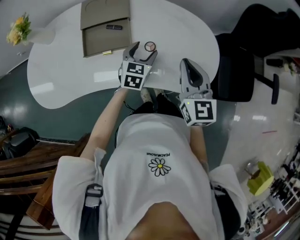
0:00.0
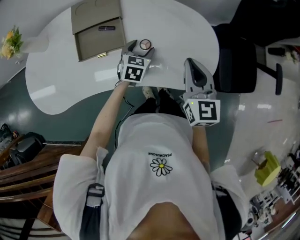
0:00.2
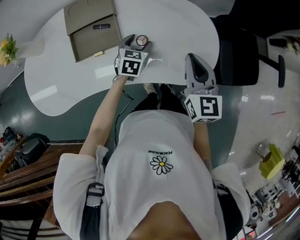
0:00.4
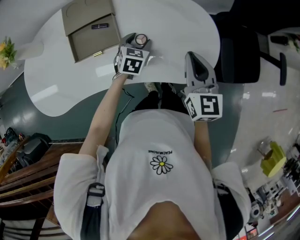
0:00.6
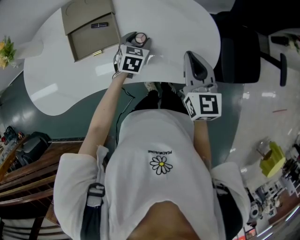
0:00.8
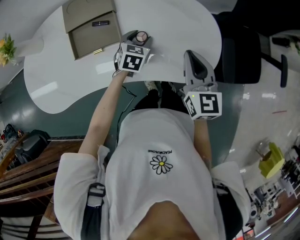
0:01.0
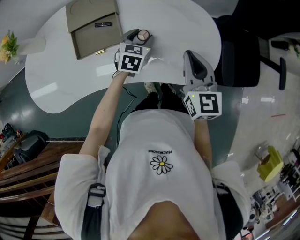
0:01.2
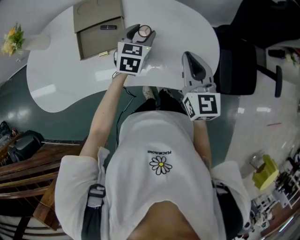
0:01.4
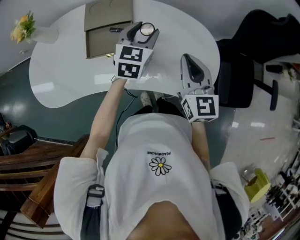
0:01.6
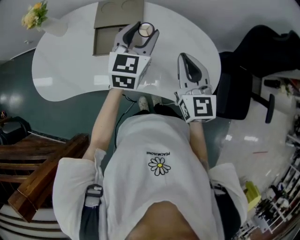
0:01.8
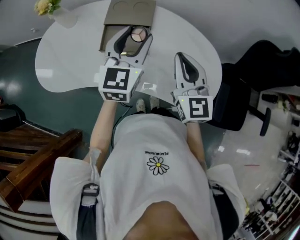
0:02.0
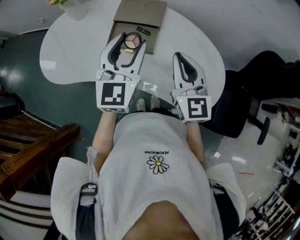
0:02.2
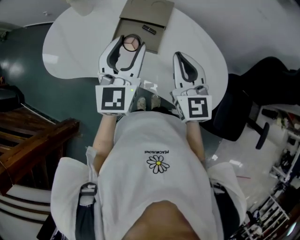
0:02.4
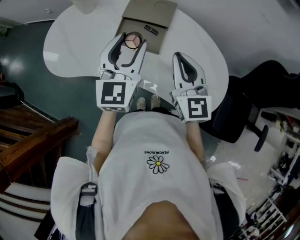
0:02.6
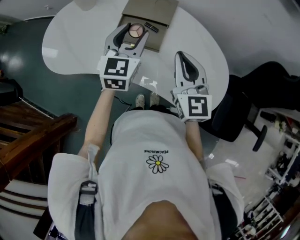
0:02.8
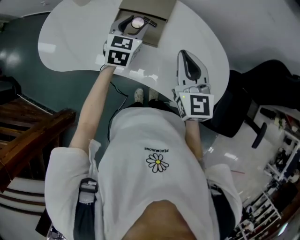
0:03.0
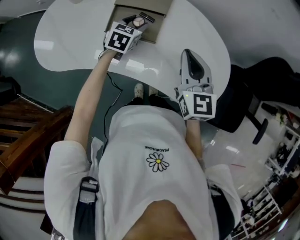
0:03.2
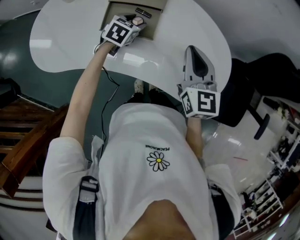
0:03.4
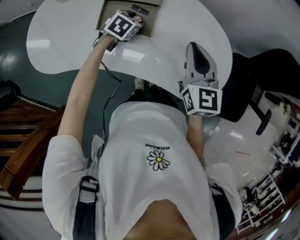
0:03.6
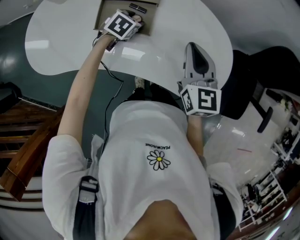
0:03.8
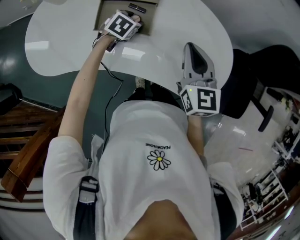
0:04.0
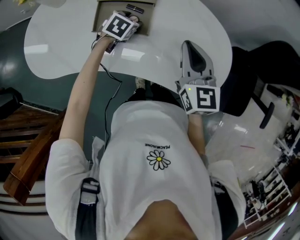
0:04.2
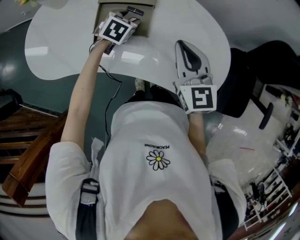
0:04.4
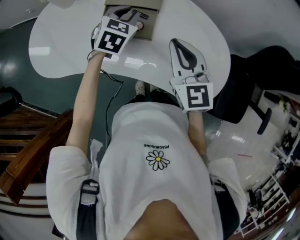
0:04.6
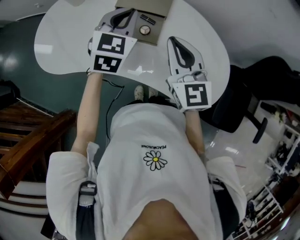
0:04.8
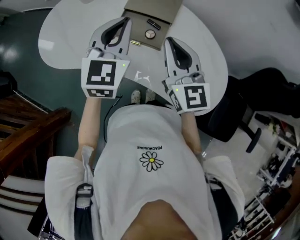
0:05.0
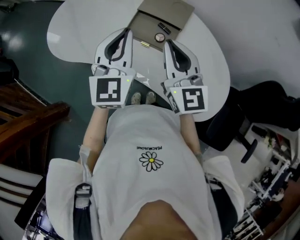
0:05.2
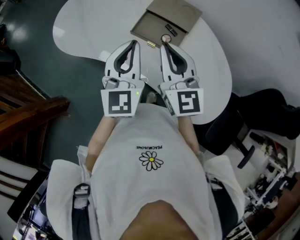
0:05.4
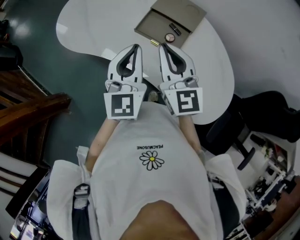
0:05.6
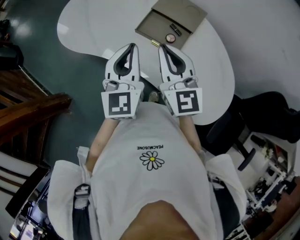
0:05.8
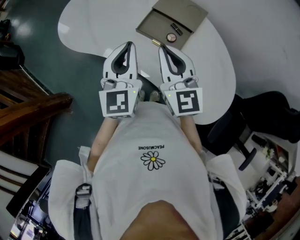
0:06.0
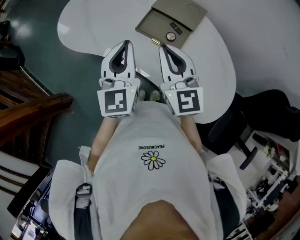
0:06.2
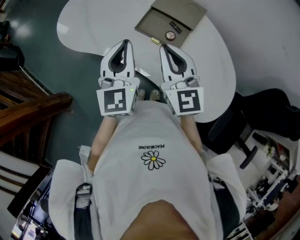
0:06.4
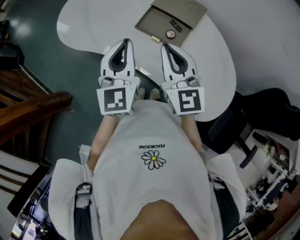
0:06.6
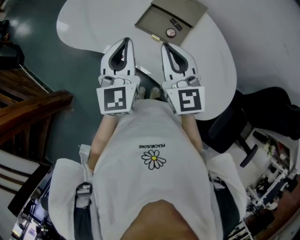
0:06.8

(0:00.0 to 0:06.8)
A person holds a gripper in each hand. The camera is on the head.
0:00.0 - 0:01.4: The left gripper travels forward by approximately 5 cm.
0:01.4 - 0:02.8: The right gripper changes place by some 15 cm, and rotates some 30 degrees. Meanwhile the left gripper ends up roughly 25 cm from where it was, and swivels about 30 degrees.
0:02.8 - 0:04.0: The right gripper travels downward and to the right by approximately 10 cm. Meanwhile the left gripper heads downward, covering about 25 cm, and angles its fingers downward, by about 50 degrees.
0:04.0 - 0:05.4: The left gripper goes approximately 30 cm upward, tilts its fingers some 60 degrees upward, and closes up. The right gripper changes place by roughly 20 cm, and changes its angle by some 30 degrees.
0:05.4 - 0:06.8: The grippers stay close to where they were, moving slightly.

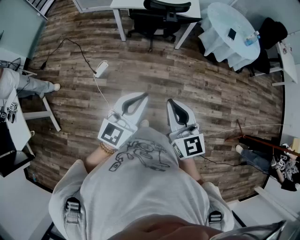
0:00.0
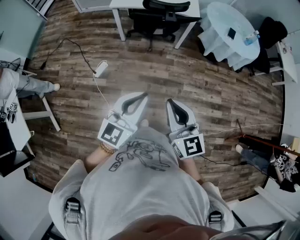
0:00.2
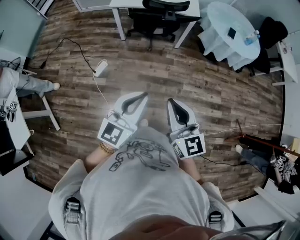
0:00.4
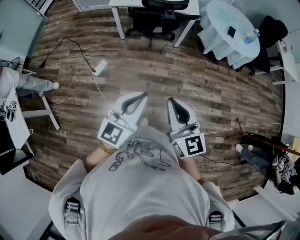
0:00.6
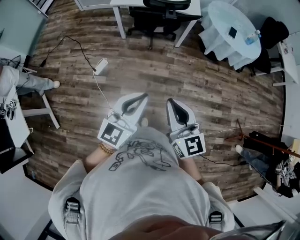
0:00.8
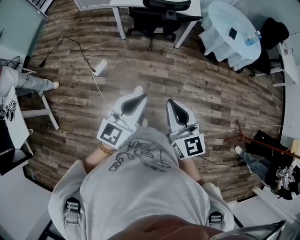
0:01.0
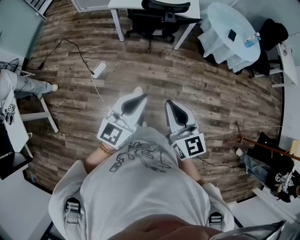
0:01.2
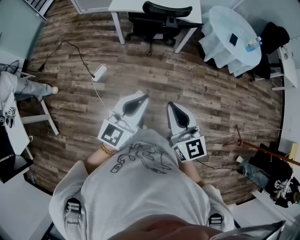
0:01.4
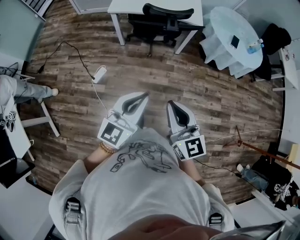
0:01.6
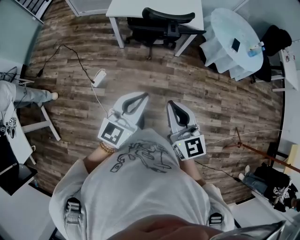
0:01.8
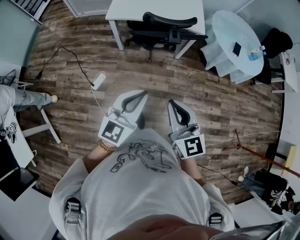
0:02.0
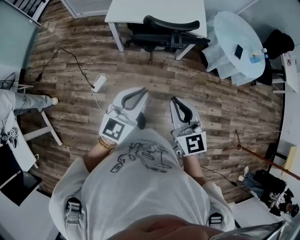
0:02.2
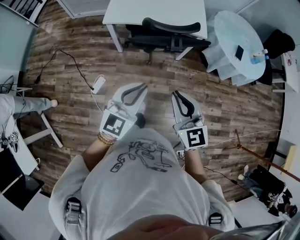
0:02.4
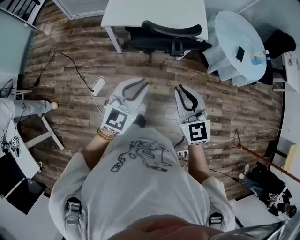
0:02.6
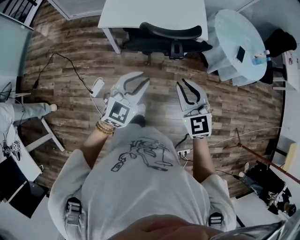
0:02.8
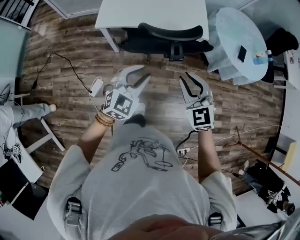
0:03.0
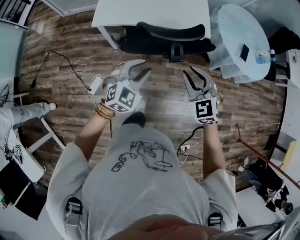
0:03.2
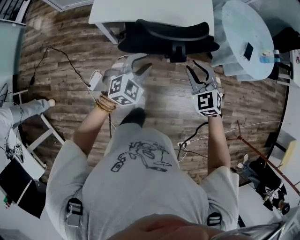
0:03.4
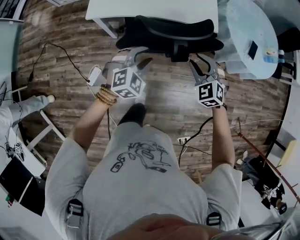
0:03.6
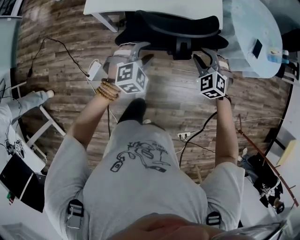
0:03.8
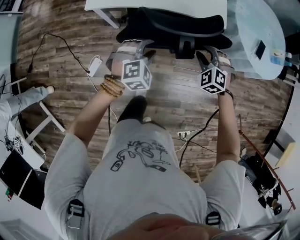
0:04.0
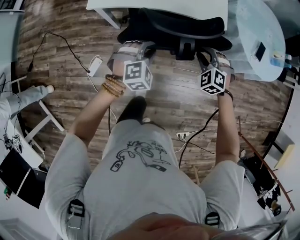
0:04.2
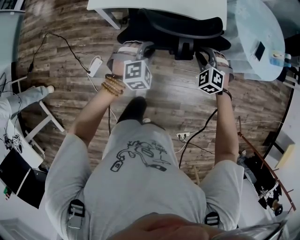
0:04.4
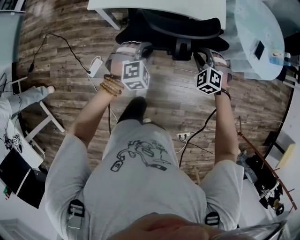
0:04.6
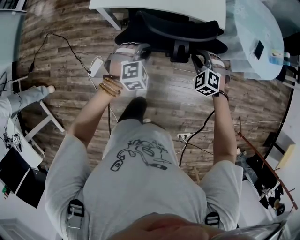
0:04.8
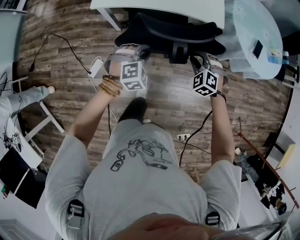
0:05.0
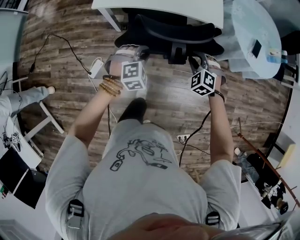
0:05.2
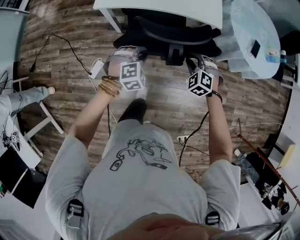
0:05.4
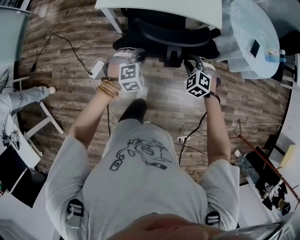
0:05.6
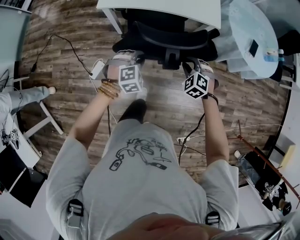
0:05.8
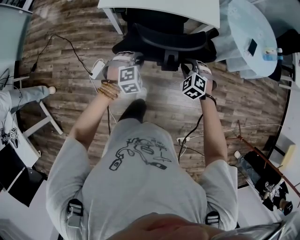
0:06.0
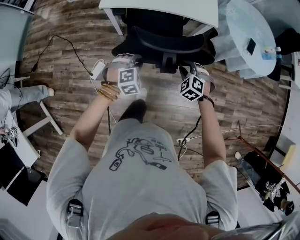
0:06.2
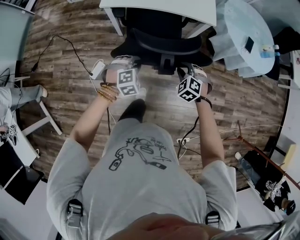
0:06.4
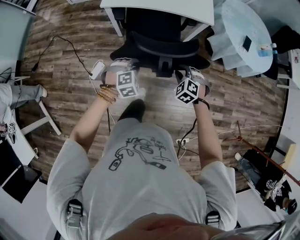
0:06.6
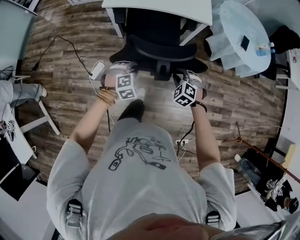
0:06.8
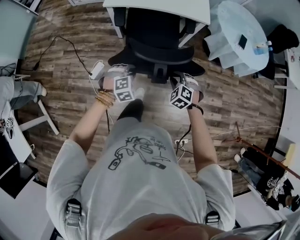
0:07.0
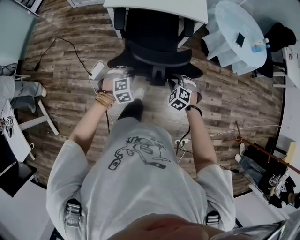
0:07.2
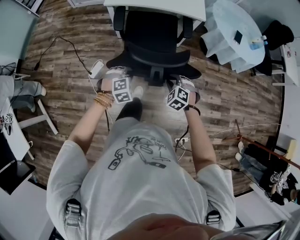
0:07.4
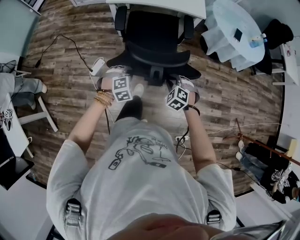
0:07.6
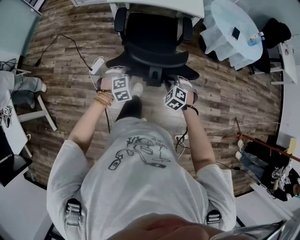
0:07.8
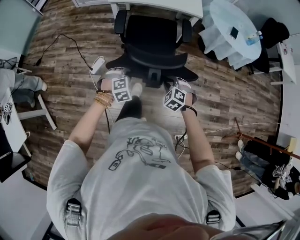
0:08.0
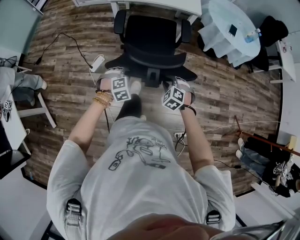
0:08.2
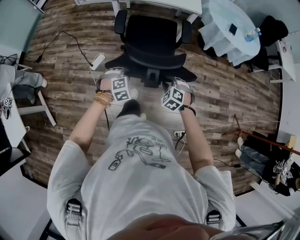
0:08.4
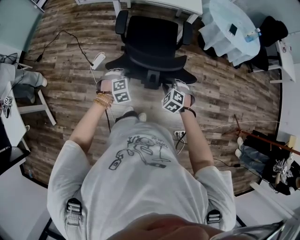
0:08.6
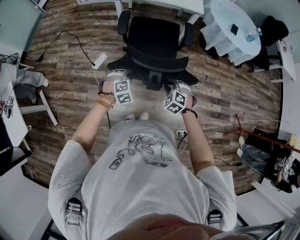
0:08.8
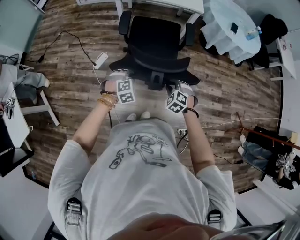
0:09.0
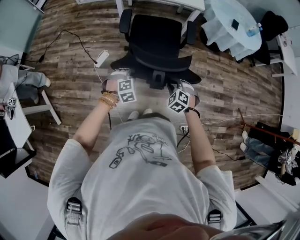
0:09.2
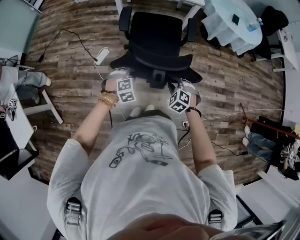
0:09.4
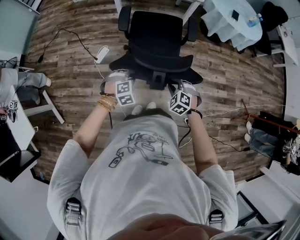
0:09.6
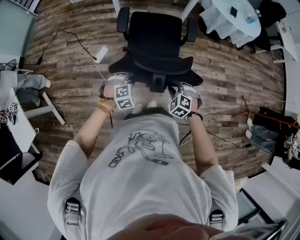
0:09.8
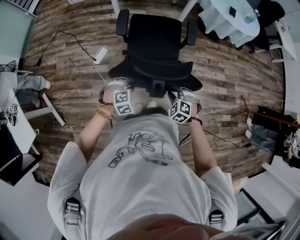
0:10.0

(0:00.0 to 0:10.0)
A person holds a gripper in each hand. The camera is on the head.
0:00.0 - 0:01.4: Both grippers move forward, approximately 5 cm.
0:01.4 - 0:02.8: The two grippers travel together, forward, approximately 40 cm. The left gripper changes its angle by about 30 degrees, and opens up. Meanwhile the right gripper rotates some 30 degrees.
0:02.8 - 0:04.2: The grippers both shift downward and forward by some 35 cm. The left gripper tips its fingers downward by some 30 degrees, and opens, then closes again, while the right gripper points its fingers about 30 degrees further downward.
0:04.2 - 0:05.8: The grippers both shift backward by about 15 cm.
0:05.8 - 0:07.2: Both grippers move backward, about 25 cm.
0:07.2 - 0:08.6: The grippers both shift backward by approximately 25 cm.
0:08.6 - 0:10.0: Both grippers travel together backward, some 15 cm.

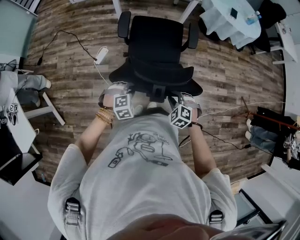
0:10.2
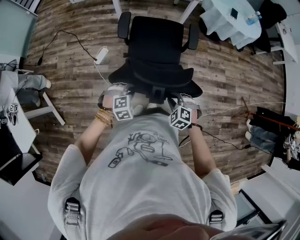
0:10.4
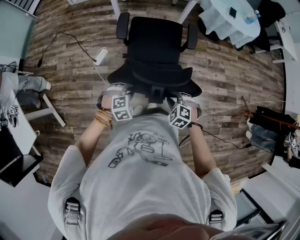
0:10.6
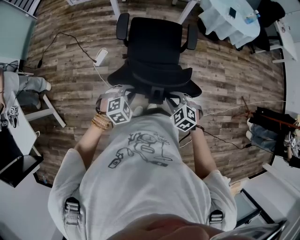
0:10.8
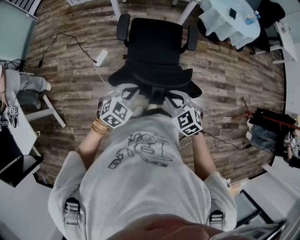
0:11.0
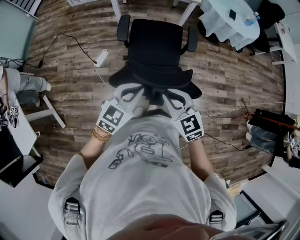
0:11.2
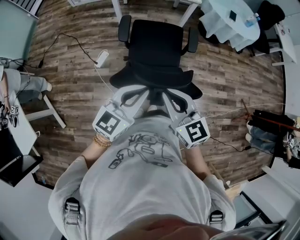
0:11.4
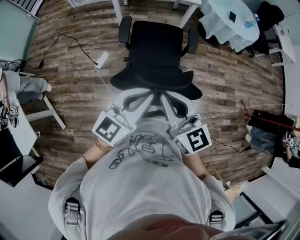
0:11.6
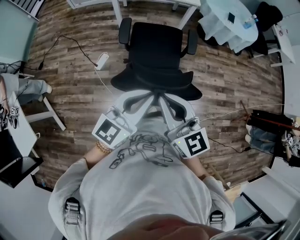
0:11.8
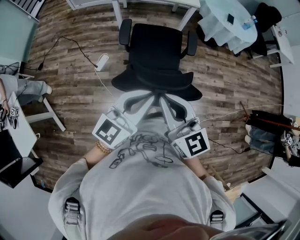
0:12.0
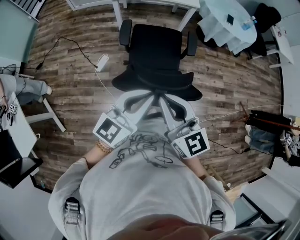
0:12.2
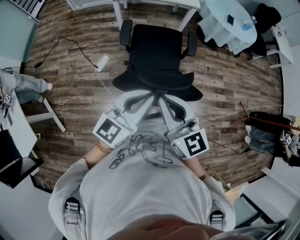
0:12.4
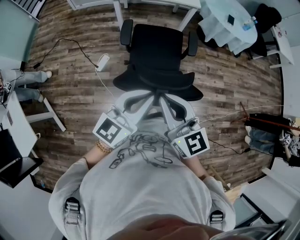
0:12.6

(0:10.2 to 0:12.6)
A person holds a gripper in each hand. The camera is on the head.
0:10.2 - 0:11.4: The two grippers go approximately 25 cm upward. The right gripper tips its fingers upward by roughly 40 degrees, while the left gripper points its fingers roughly 50 degrees further upward, and closes.
0:11.4 - 0:12.6: The grippers both shift upward by approximately 5 cm.

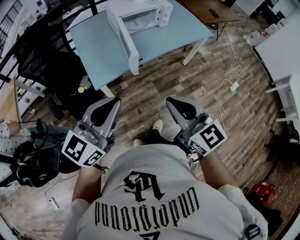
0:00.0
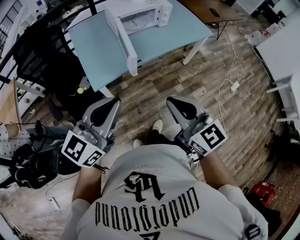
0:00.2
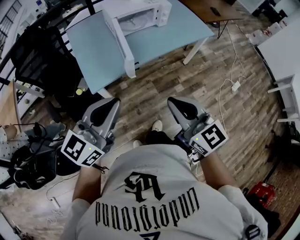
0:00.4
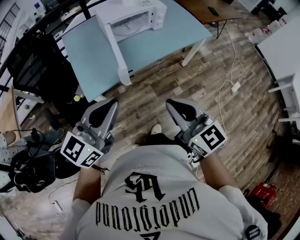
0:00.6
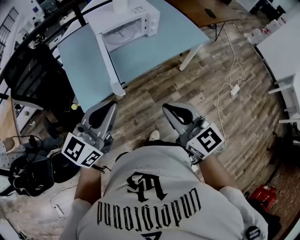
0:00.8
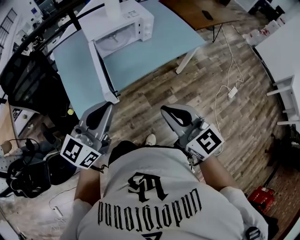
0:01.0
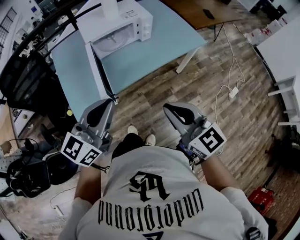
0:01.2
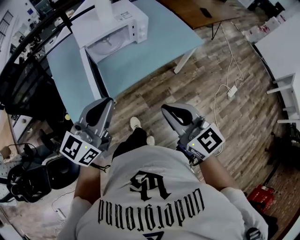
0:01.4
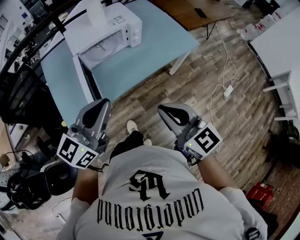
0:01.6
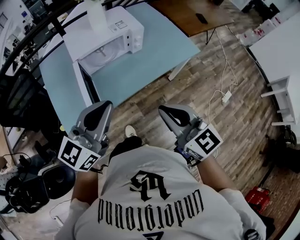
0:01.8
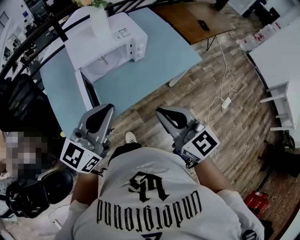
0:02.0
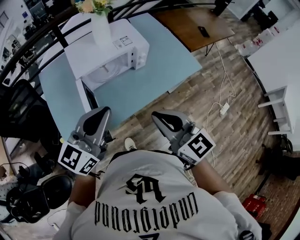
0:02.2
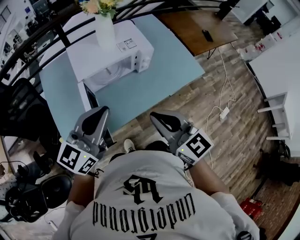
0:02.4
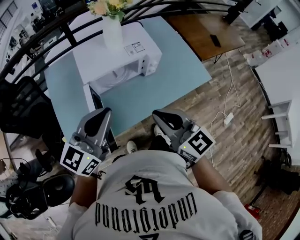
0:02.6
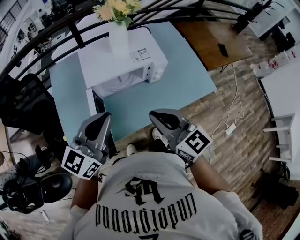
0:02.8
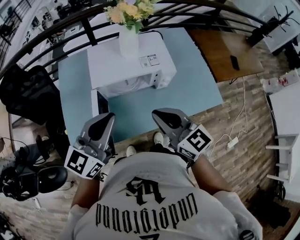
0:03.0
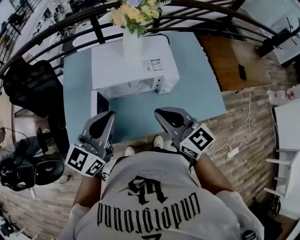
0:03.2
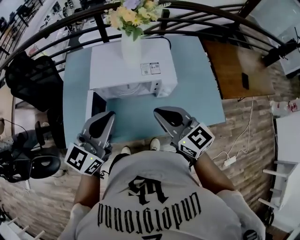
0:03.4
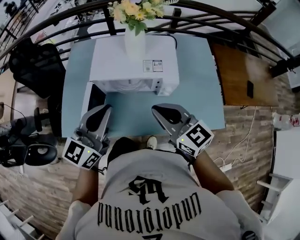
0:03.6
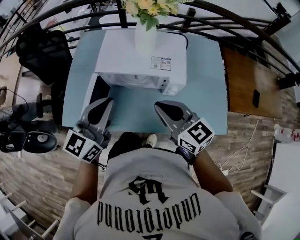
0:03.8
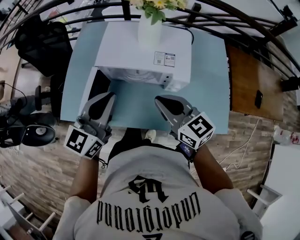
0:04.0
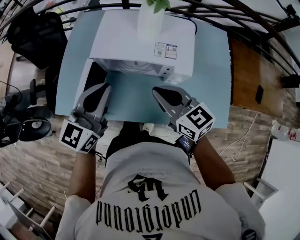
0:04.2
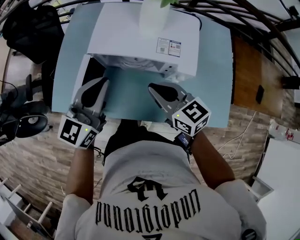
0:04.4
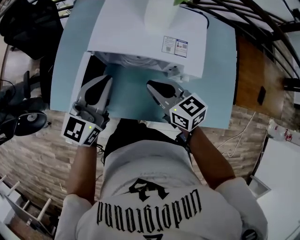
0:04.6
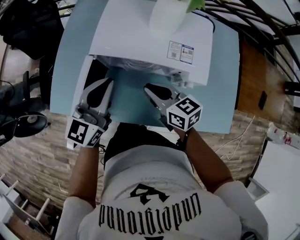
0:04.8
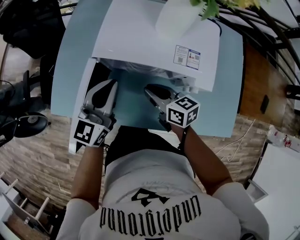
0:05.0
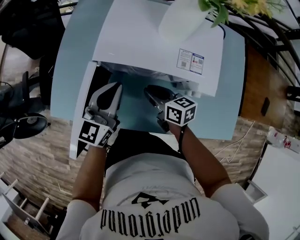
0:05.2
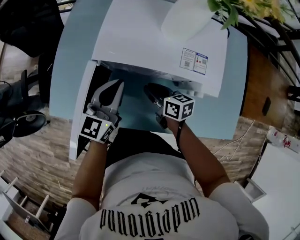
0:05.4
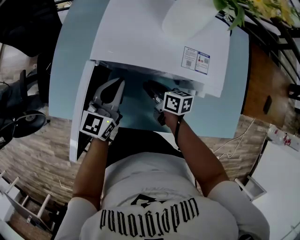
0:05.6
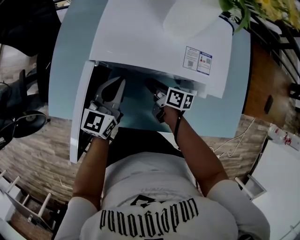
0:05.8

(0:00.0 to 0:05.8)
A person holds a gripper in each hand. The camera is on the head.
0:00.0 - 0:01.4: The two grippers go approximately 30 cm forward and to the right.
0:01.4 - 0:02.8: The grippers both shift forward by approximately 25 cm.
0:02.8 - 0:04.4: The right gripper moves some 20 cm, and swivels approximately 30 degrees. The left gripper moves roughly 15 cm, and turns by approximately 30 degrees.
0:04.4 - 0:05.8: The left gripper goes approximately 20 cm downward and forward; the right gripper is displaced downward by some 25 cm, rotates around the line of its fingers by roughly 50 degrees, clockwise from behind, and opens its fingers.
